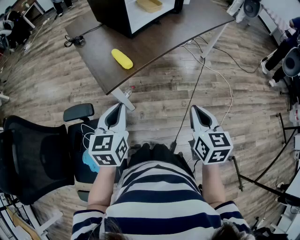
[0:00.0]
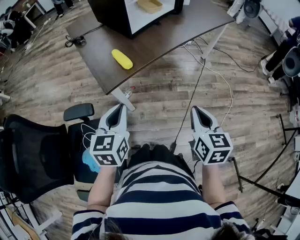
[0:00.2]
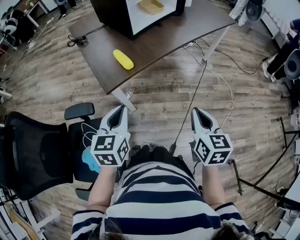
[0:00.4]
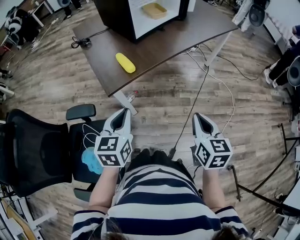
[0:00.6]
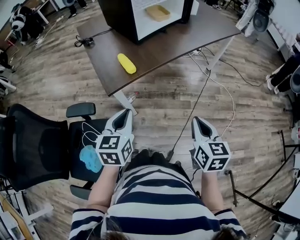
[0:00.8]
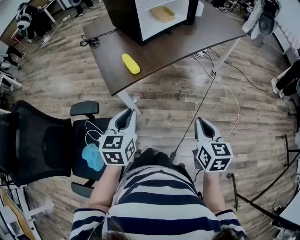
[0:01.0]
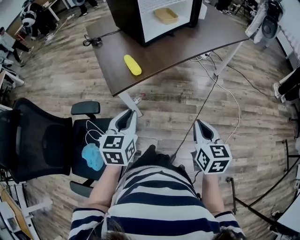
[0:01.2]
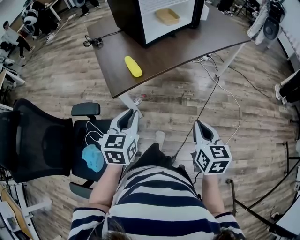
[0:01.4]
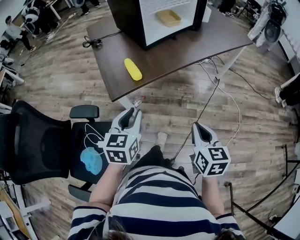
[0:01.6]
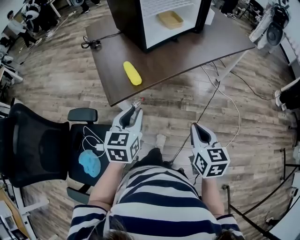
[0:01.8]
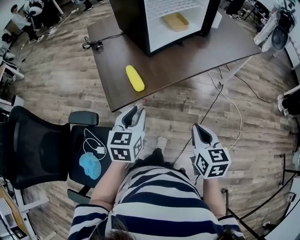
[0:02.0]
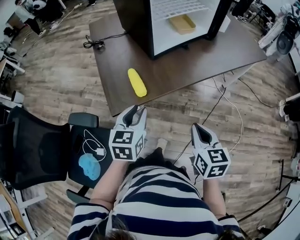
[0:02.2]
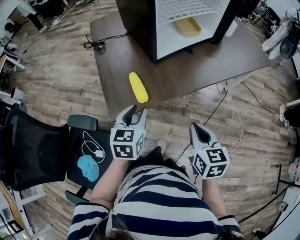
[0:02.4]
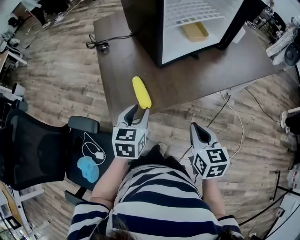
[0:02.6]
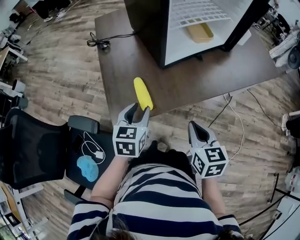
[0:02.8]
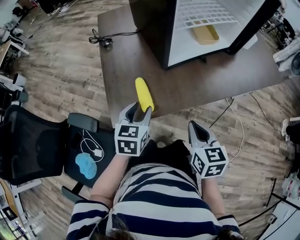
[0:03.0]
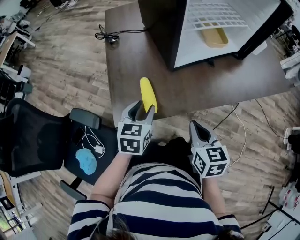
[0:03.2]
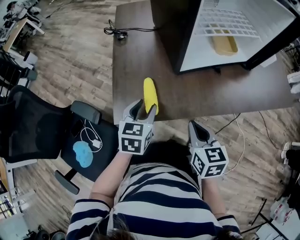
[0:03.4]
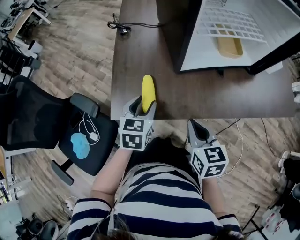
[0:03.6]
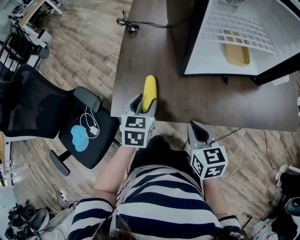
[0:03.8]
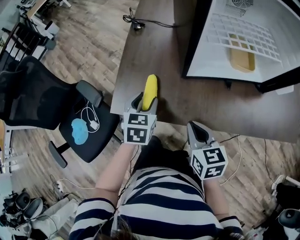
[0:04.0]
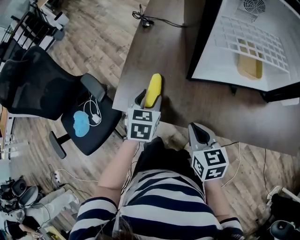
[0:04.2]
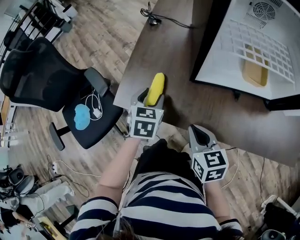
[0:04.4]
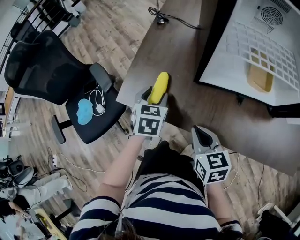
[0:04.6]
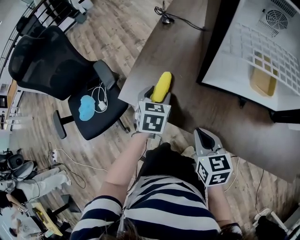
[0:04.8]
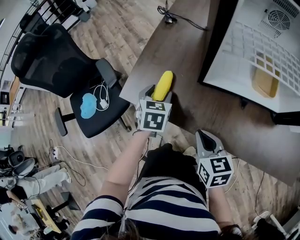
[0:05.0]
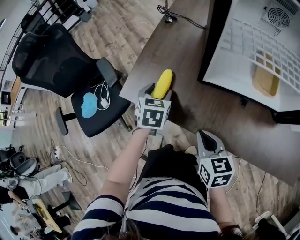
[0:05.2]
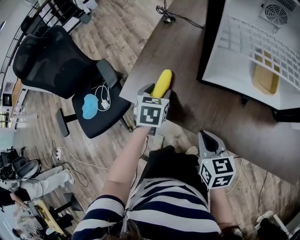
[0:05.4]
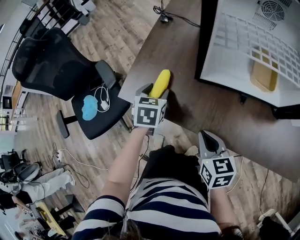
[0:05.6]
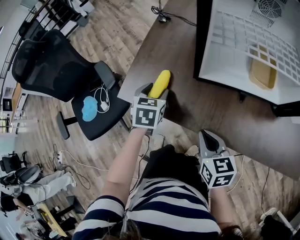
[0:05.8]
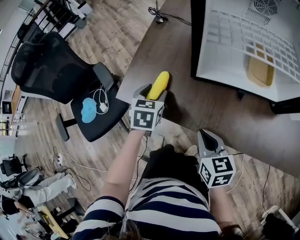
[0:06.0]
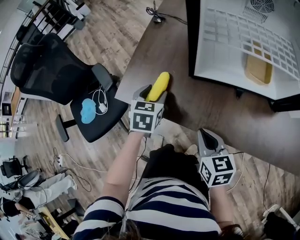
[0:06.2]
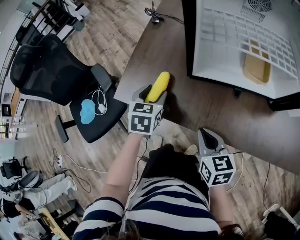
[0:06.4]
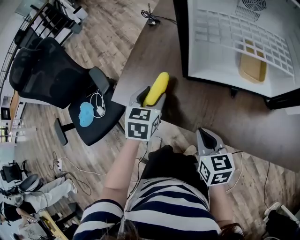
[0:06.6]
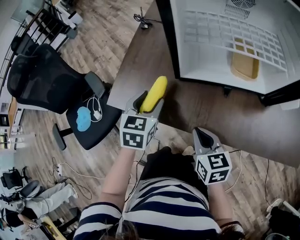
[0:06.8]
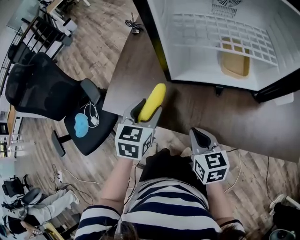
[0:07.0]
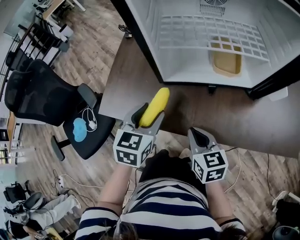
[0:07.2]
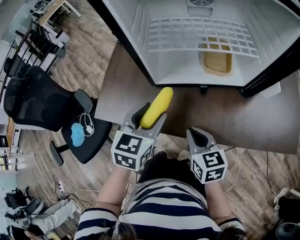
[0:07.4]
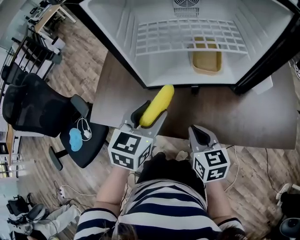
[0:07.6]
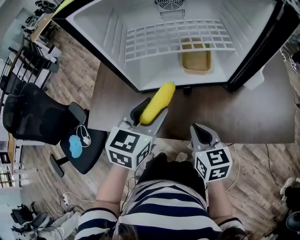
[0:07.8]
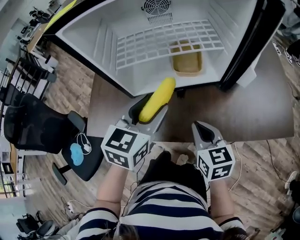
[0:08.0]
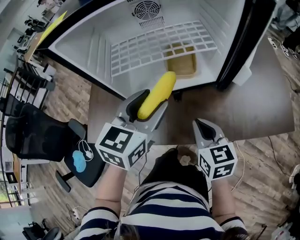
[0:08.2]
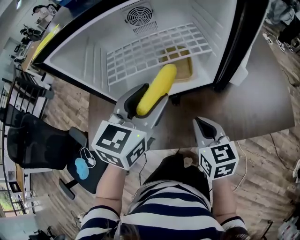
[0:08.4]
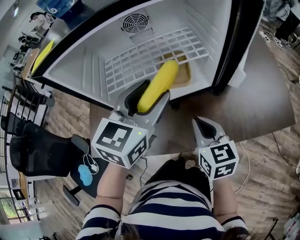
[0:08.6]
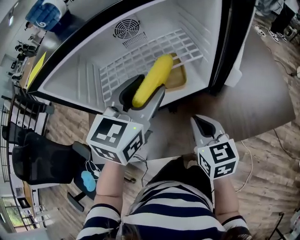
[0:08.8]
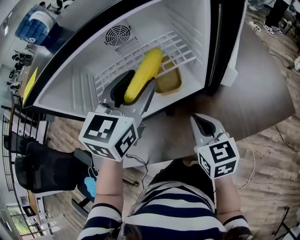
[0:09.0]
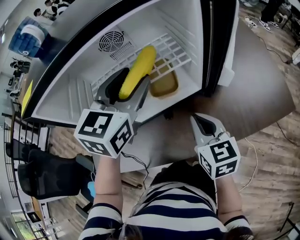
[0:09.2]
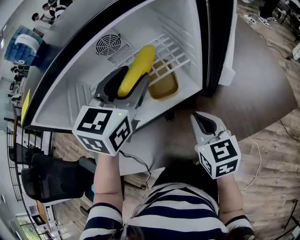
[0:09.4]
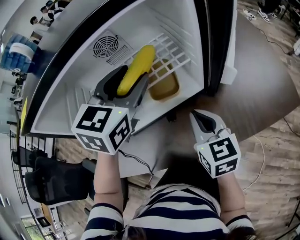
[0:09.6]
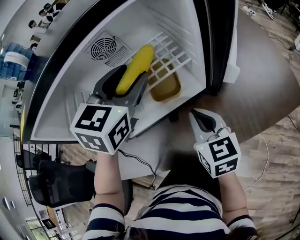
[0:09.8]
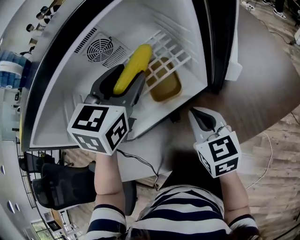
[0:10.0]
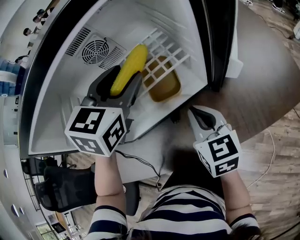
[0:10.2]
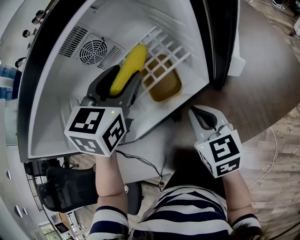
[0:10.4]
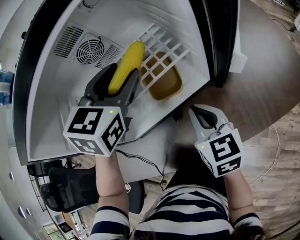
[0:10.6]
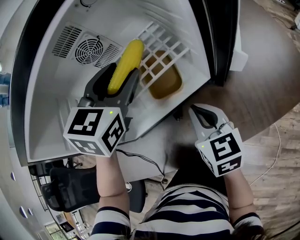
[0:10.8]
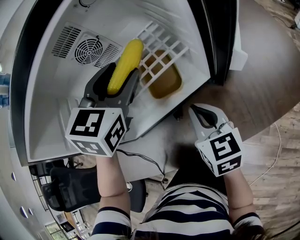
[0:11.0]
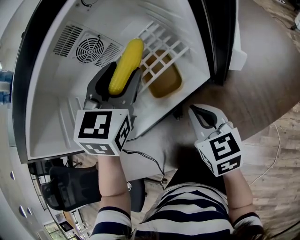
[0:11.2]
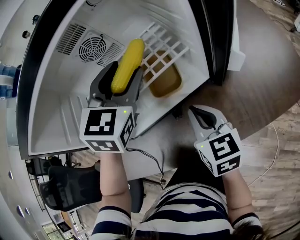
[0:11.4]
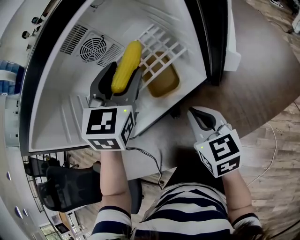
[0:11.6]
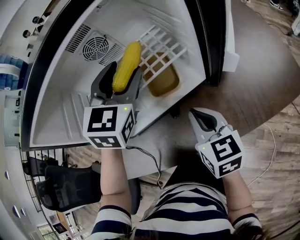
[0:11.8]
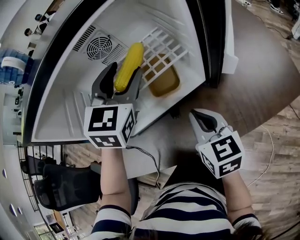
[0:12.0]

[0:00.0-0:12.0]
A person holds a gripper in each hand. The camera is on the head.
0:00.0 to 0:01.6: The left gripper heads to the right, covering about 5 cm.
0:01.6 to 0:03.0: The grippers both shift forward by approximately 25 cm.
0:03.0 to 0:04.4: The left gripper ends up some 5 cm from where it was, and changes its angle by some 30 degrees, while the right gripper moves about 10 cm, and turns by approximately 40 degrees.
0:04.4 to 0:06.0: The right gripper shifts by roughly 5 cm.
0:06.0 to 0:07.6: The right gripper heads to the right, covering about 15 cm. The left gripper is displaced to the right, upward and backward by about 25 cm, and turns by some 30 degrees.
0:07.6 to 0:09.0: The right gripper heads to the right, forward and upward, covering some 15 cm, while the left gripper moves forward, upward and to the right, about 25 cm, and changes its angle by some 20 degrees.
0:09.0 to 0:10.4: The left gripper travels forward by roughly 10 cm. The right gripper travels forward by approximately 5 cm.
0:10.4 to 0:12.0: There are only small adjustments of the grippers.

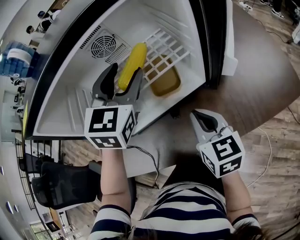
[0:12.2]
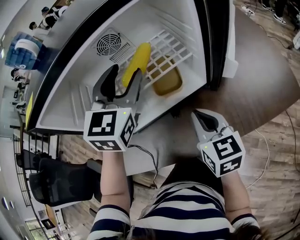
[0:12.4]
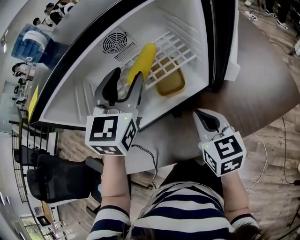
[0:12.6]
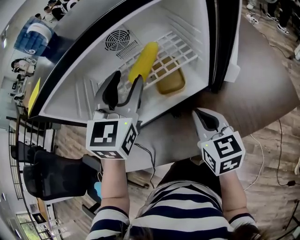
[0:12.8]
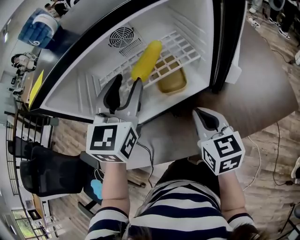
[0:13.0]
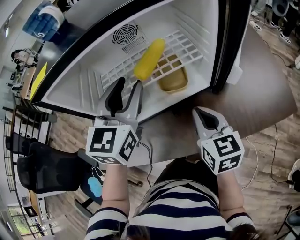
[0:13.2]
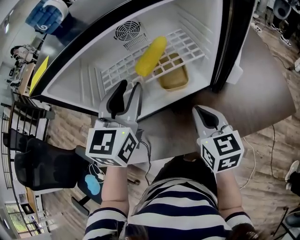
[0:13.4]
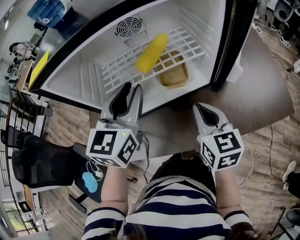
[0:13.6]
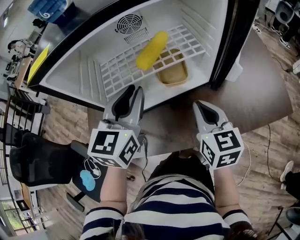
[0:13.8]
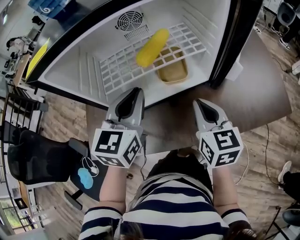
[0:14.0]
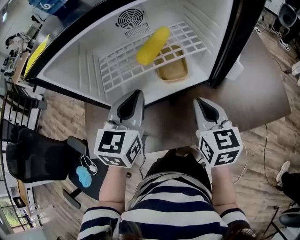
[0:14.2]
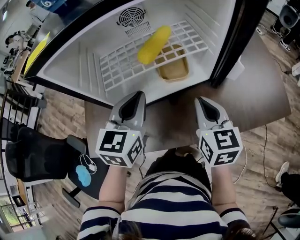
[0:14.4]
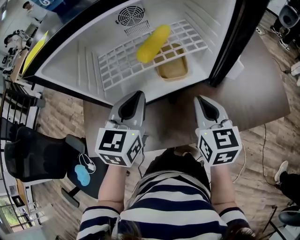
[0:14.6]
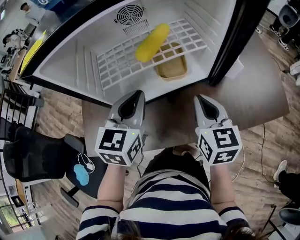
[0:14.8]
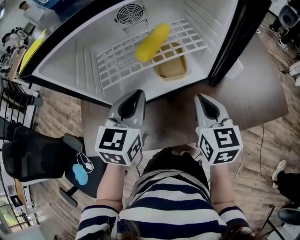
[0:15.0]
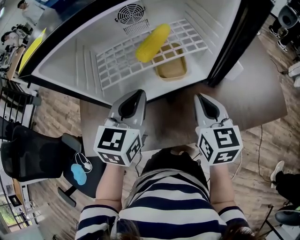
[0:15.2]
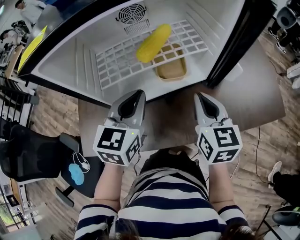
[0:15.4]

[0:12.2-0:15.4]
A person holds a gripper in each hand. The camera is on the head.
0:12.2 to 0:13.8: The left gripper moves backward and to the left, roughly 10 cm, and rotates some 20 degrees.
0:13.8 to 0:15.4: The left gripper shifts roughly 10 cm downward.

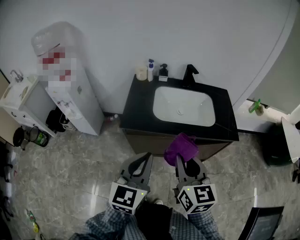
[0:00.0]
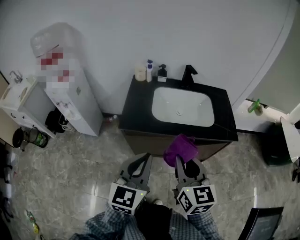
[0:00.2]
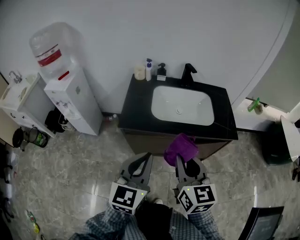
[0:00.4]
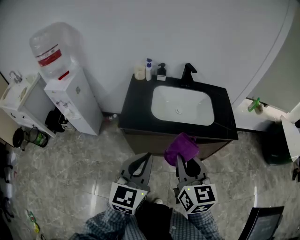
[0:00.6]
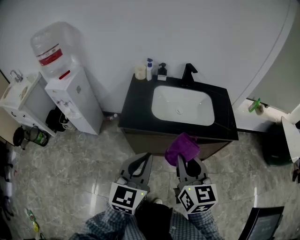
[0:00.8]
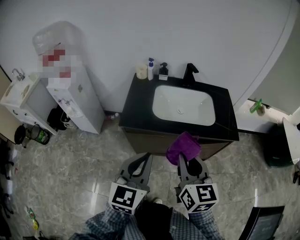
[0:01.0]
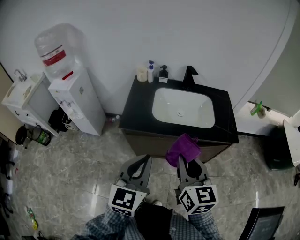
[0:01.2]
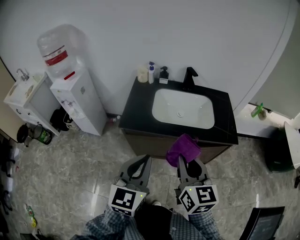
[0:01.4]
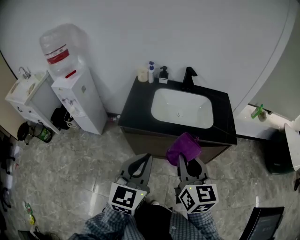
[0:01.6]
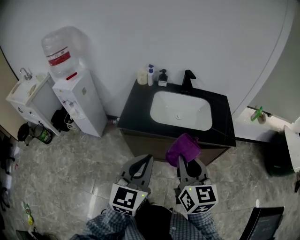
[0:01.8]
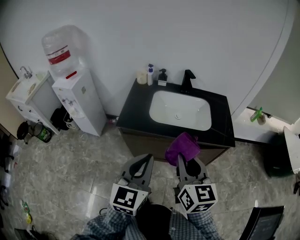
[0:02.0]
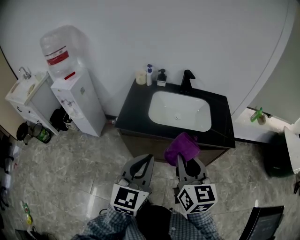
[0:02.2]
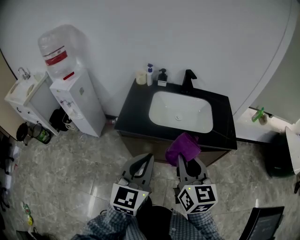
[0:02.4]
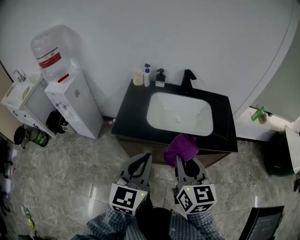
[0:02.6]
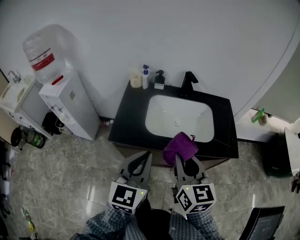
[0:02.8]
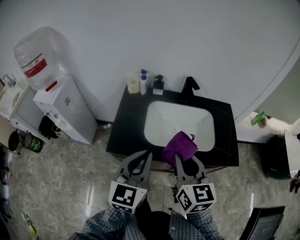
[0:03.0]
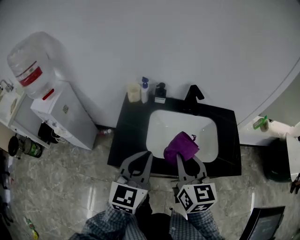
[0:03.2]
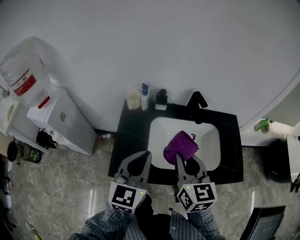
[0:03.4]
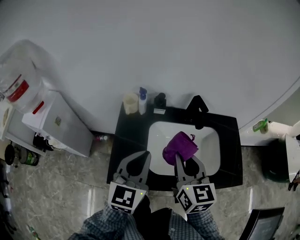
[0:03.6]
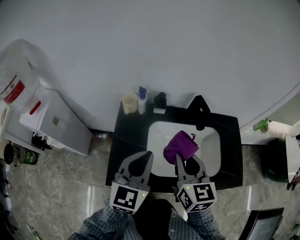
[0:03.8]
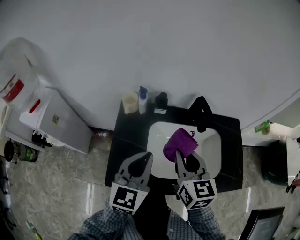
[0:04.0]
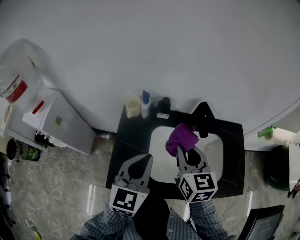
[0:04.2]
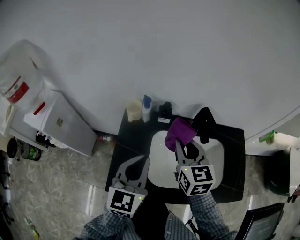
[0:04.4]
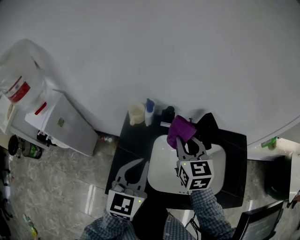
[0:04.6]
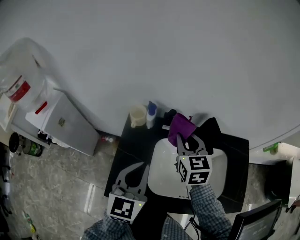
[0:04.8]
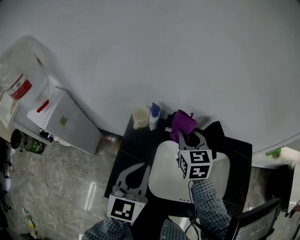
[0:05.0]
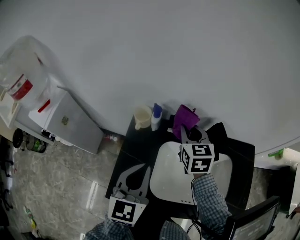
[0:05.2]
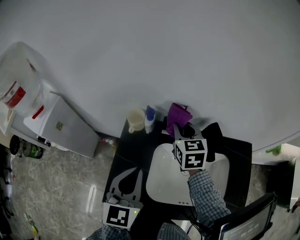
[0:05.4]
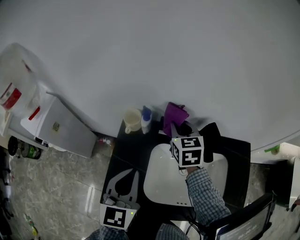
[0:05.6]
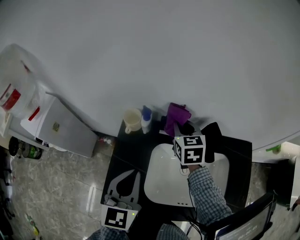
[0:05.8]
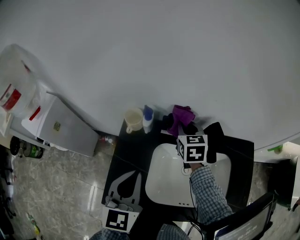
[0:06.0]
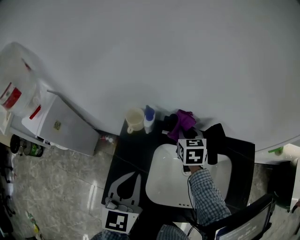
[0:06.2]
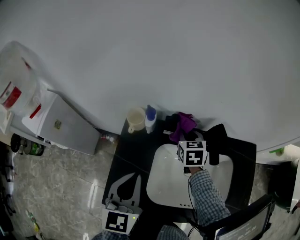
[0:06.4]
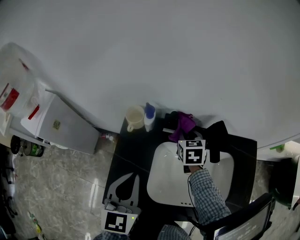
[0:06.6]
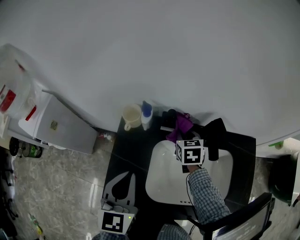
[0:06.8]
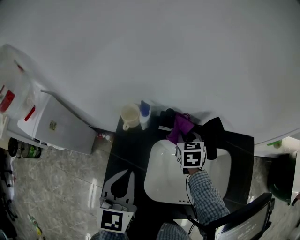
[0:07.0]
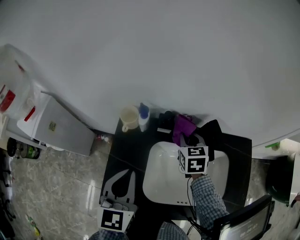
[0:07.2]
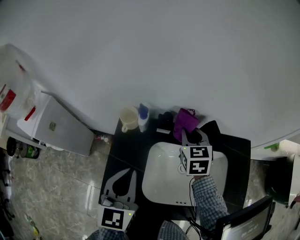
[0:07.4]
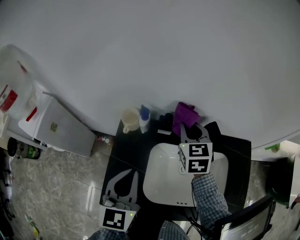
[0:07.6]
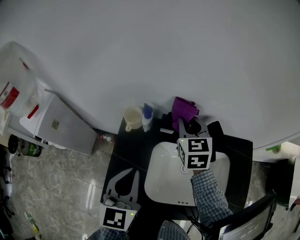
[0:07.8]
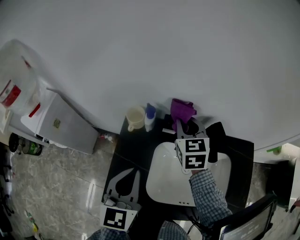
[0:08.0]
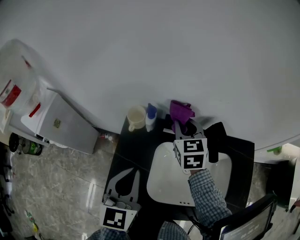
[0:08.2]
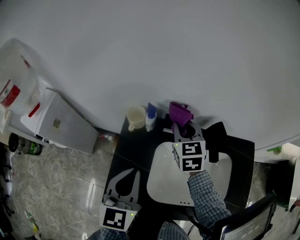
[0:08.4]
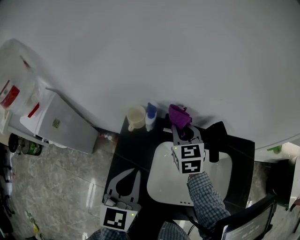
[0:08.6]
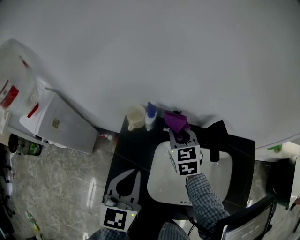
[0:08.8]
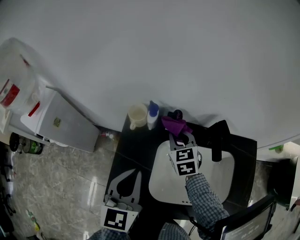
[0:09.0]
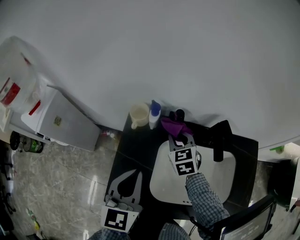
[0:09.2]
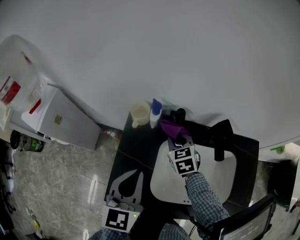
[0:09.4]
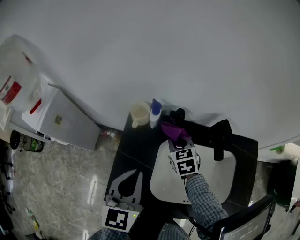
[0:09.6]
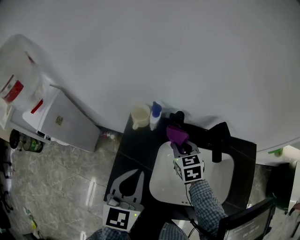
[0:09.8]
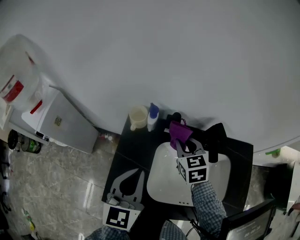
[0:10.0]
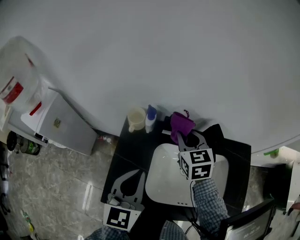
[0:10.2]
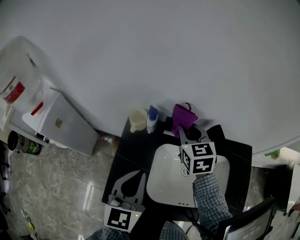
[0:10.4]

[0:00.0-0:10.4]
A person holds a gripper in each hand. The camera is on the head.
0:00.0 to 0:01.4: There are only small adjustments of the grippers.
0:01.4 to 0:03.0: Both grippers travel together forward, roughly 20 cm.
0:03.0 to 0:04.4: The grippers both shift forward by some 25 cm.
0:04.4 to 0:06.0: The right gripper is displaced forward and downward by about 20 cm; the left gripper ends up some 5 cm from where it was.
0:06.0 to 0:07.4: The right gripper reaches approximately 10 cm downward, then returns.
0:07.4 to 0:09.0: The right gripper goes roughly 10 cm to the left and downward.
0:09.0 to 0:10.4: The right gripper goes approximately 10 cm upward.
